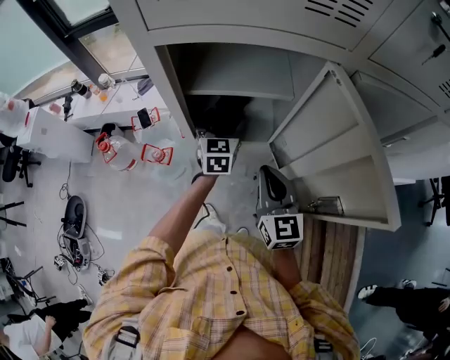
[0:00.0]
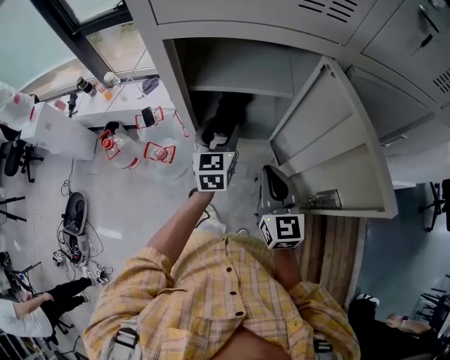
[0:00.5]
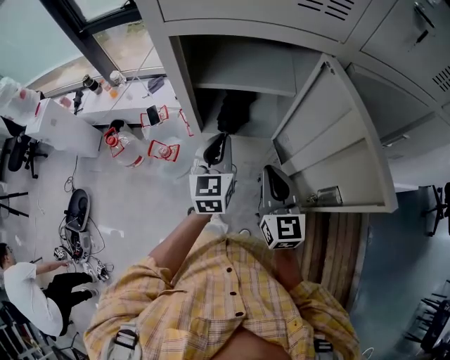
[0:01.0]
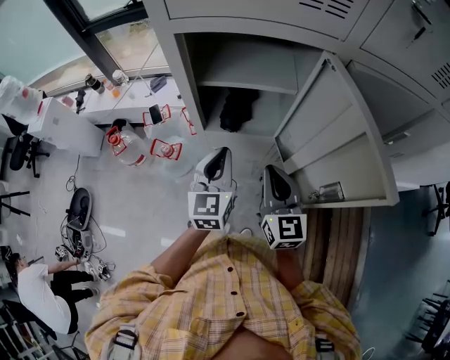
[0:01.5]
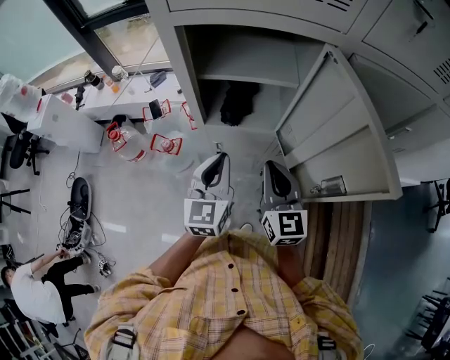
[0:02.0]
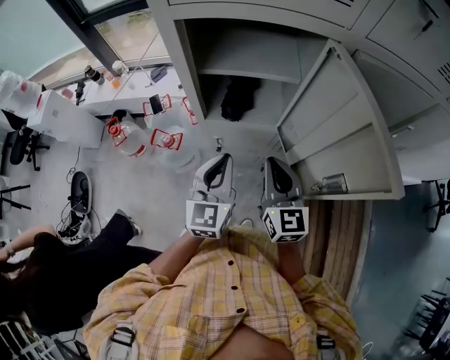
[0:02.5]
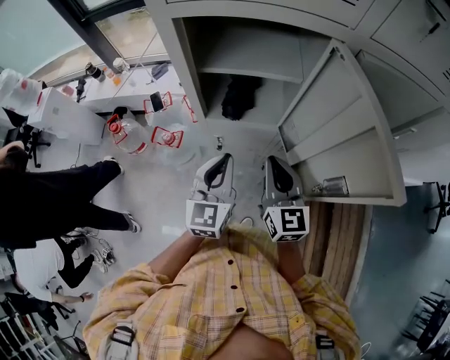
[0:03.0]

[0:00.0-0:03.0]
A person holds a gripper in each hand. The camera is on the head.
0:00.0 to 0:01.5: The left gripper shifts approximately 20 cm backward and upward, and closes.
0:01.5 to 0:03.0: The grippers move only a little.

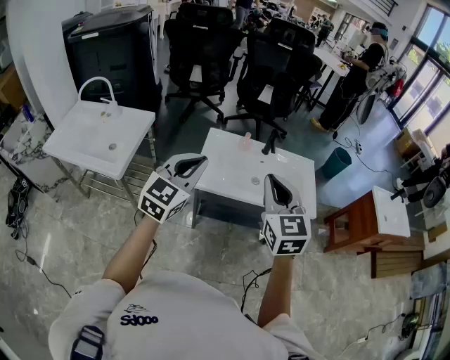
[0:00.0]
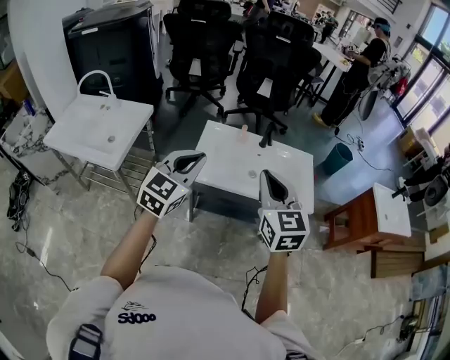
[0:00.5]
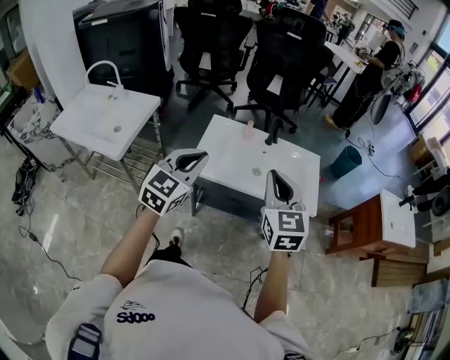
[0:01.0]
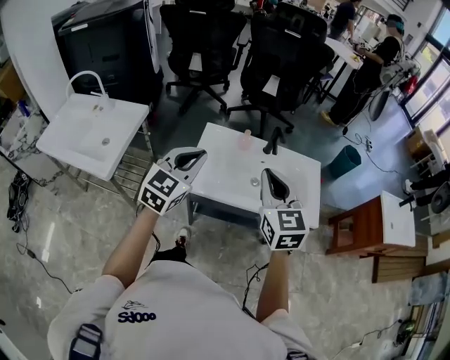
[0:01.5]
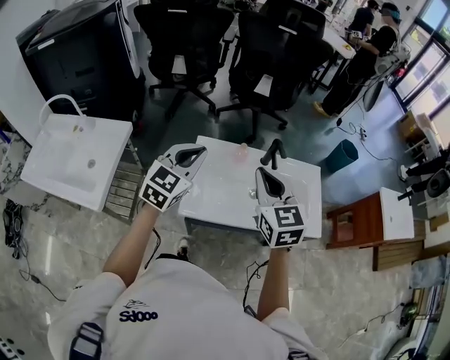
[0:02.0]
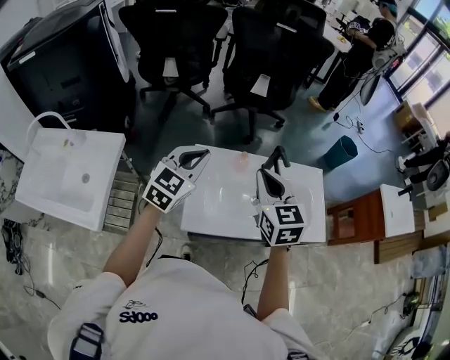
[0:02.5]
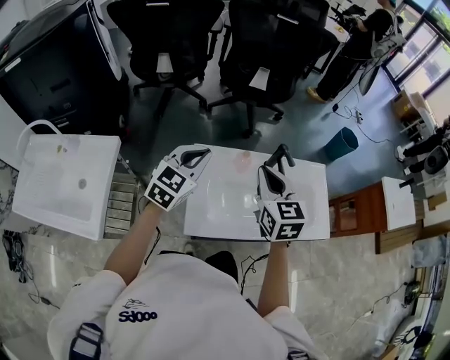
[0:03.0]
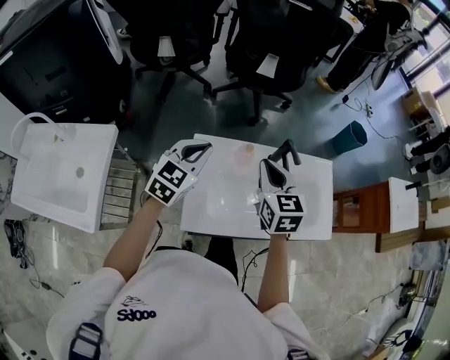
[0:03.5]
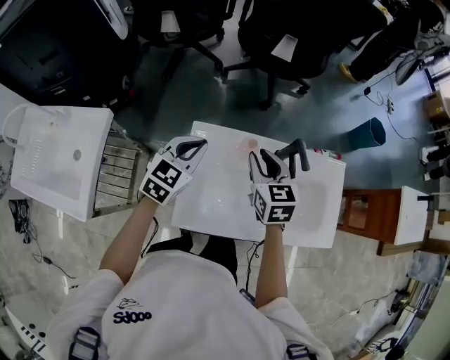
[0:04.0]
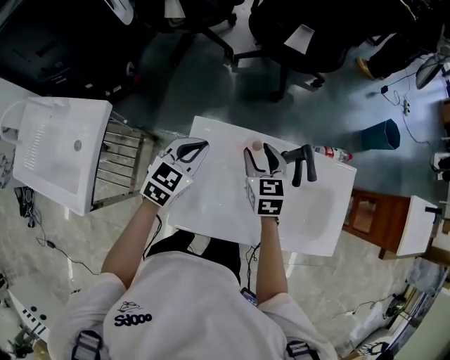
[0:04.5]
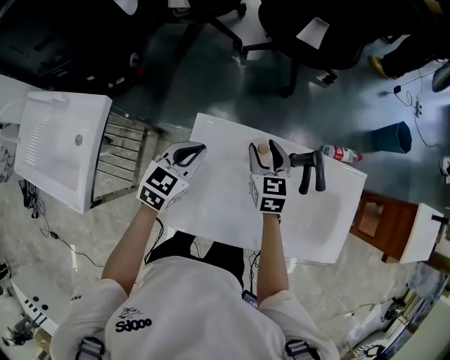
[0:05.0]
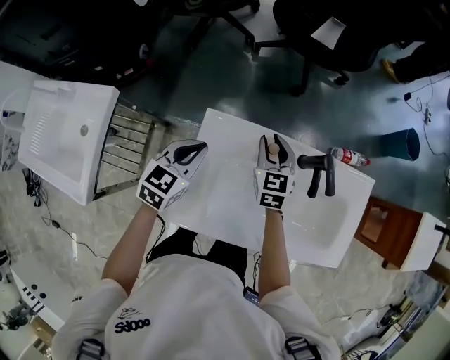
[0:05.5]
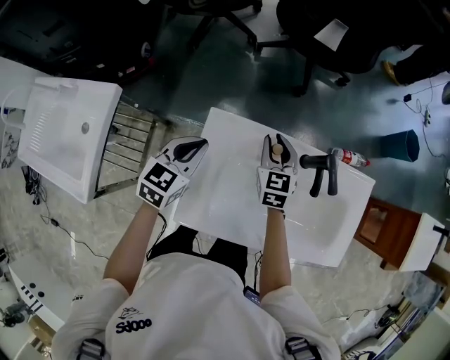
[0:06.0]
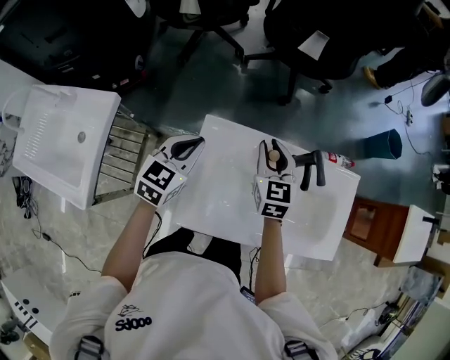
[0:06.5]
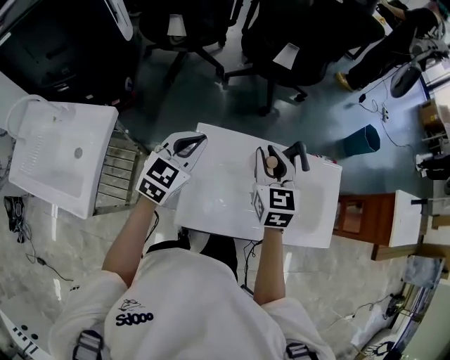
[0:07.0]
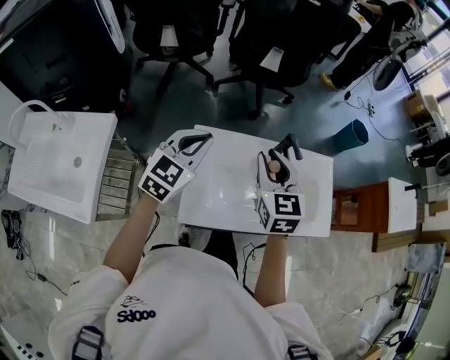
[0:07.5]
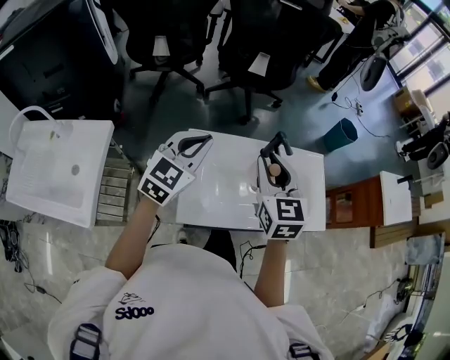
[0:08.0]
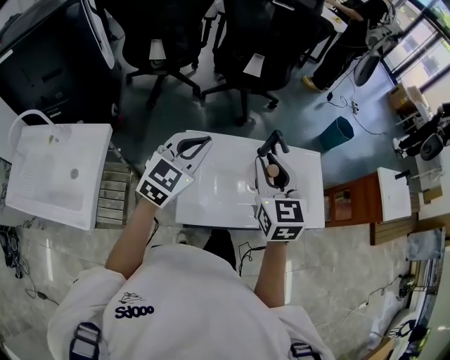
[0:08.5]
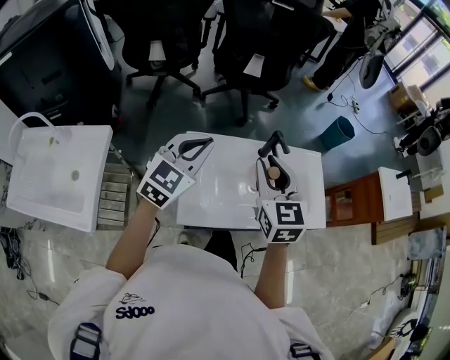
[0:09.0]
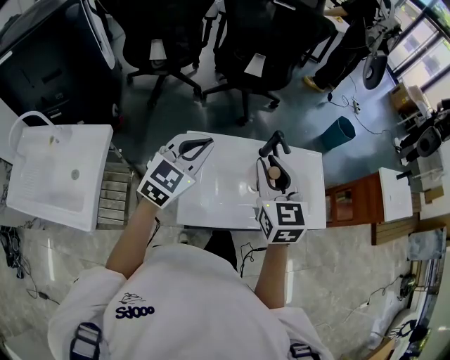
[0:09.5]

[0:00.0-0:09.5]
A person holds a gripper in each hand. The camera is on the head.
0:00.0 to 0:02.0: The grippers both shift forward by roughly 20 cm.
0:02.0 to 0:04.0: The right gripper travels forward and downward by approximately 25 cm, and opens its fingers, while the left gripper is displaced downward and forward by approximately 20 cm.
0:04.0 to 0:05.5: The left gripper shifts approximately 10 cm downward. Meanwhile the right gripper shifts some 15 cm downward and forward, and opens, then closes once more.
0:05.5 to 0:07.5: The right gripper goes some 25 cm upward and backward. The left gripper goes approximately 15 cm upward, and changes its angle by some 30 degrees.
0:07.5 to 0:09.5: The left gripper moves some 5 cm. The right gripper changes place by roughly 5 cm.

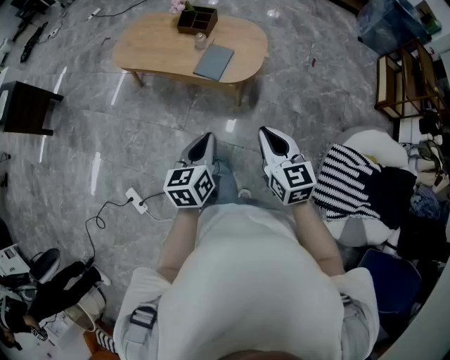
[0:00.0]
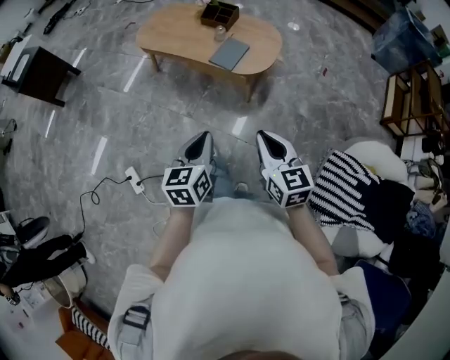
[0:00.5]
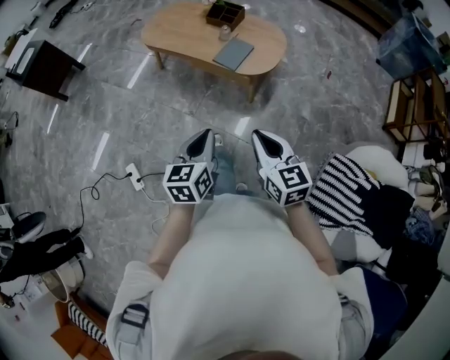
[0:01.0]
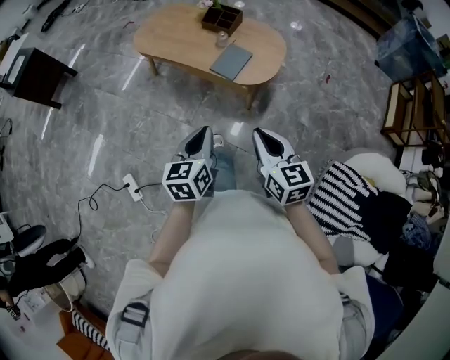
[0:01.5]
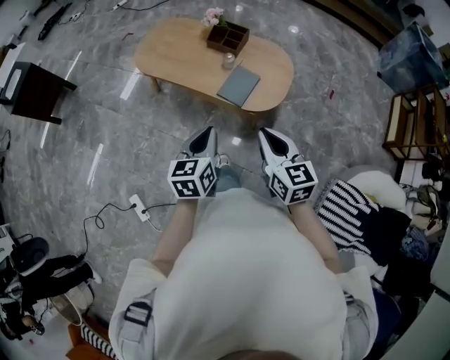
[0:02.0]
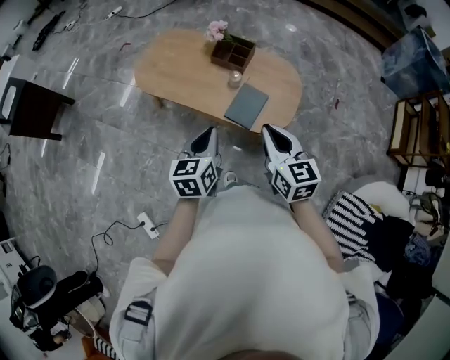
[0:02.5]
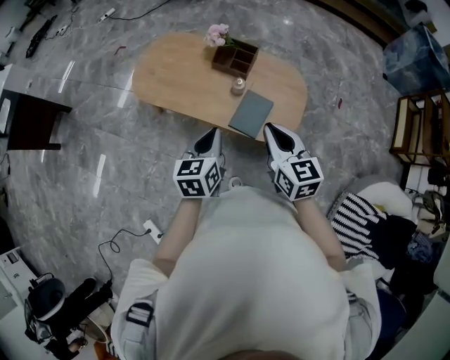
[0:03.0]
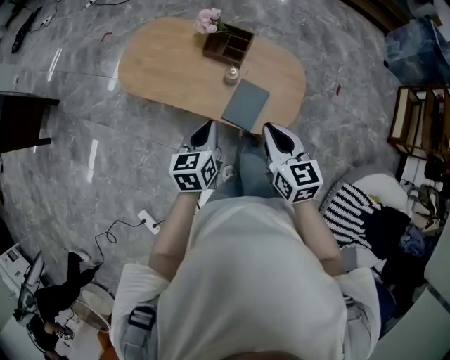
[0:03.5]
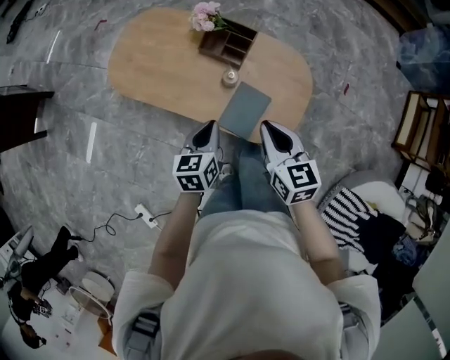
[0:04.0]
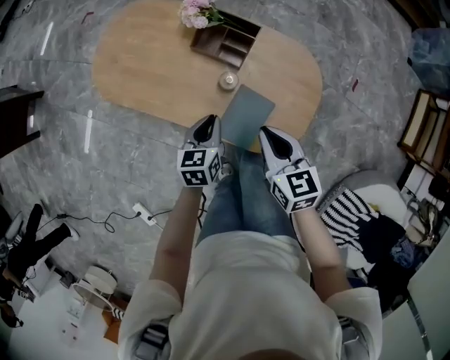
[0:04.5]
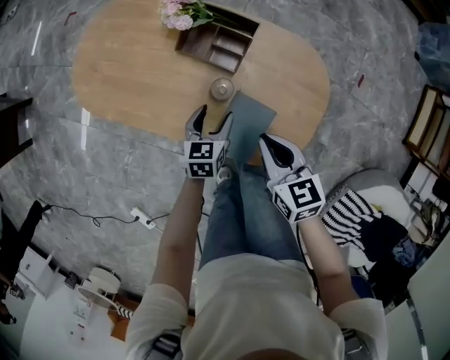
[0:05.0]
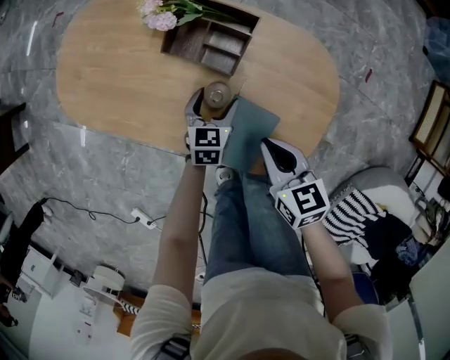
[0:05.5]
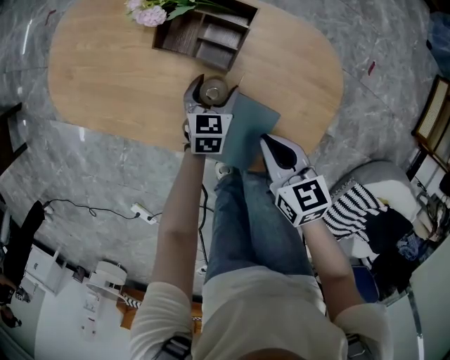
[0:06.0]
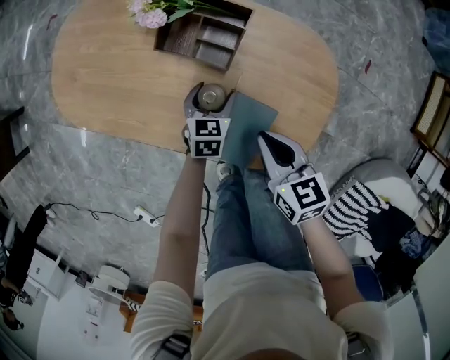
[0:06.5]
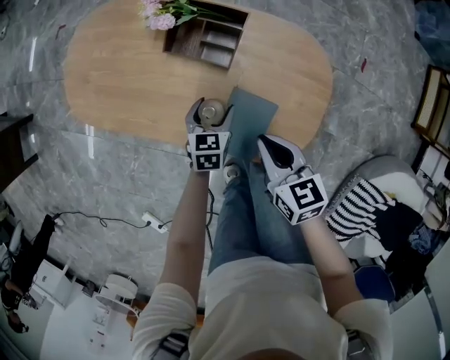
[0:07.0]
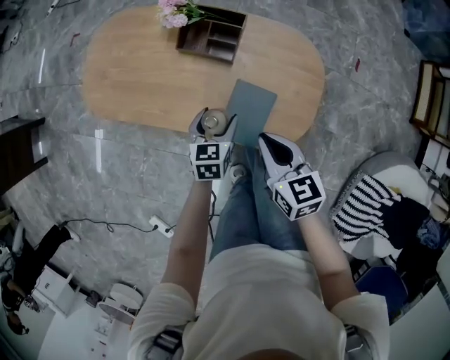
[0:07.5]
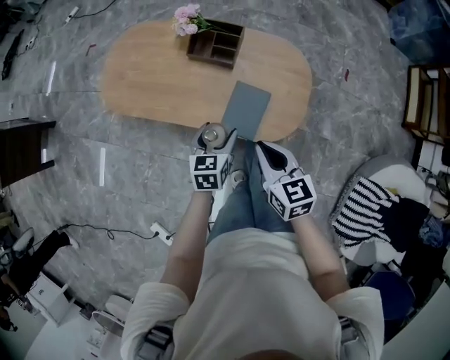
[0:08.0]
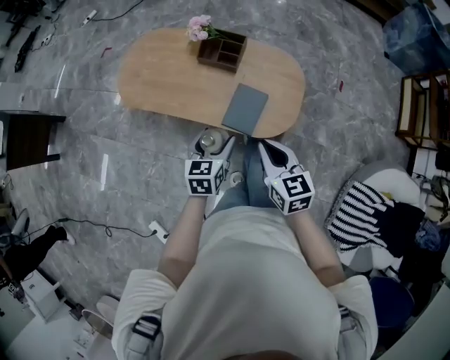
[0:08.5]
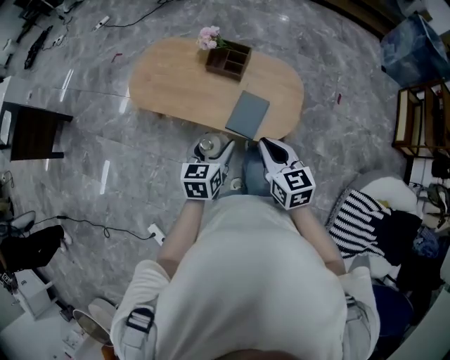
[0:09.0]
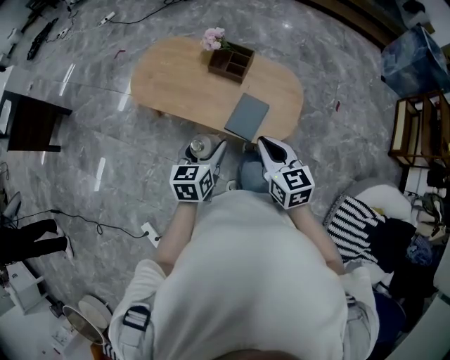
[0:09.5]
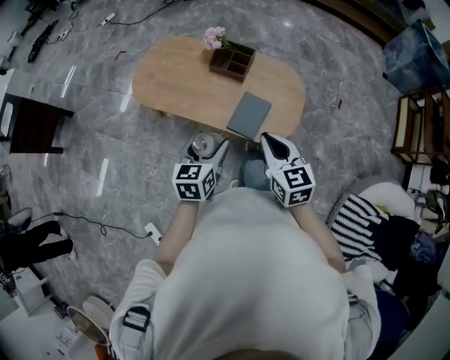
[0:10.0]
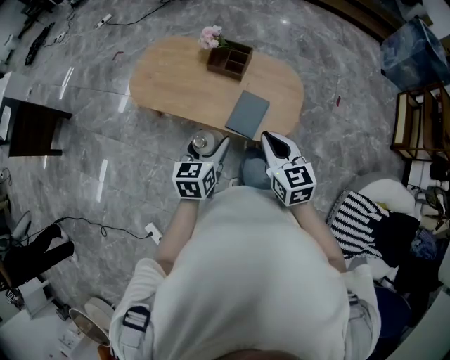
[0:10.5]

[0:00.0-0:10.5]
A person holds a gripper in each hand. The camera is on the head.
0:00.0 to 0:02.0: The right gripper goes about 15 cm forward and to the left. Meanwhile the left gripper heads forward, covering approximately 15 cm.
0:02.0 to 0:04.0: The left gripper goes some 35 cm forward and downward. Meanwhile the right gripper goes approximately 30 cm forward.
0:04.0 to 0:06.5: The right gripper is displaced downward by roughly 20 cm; the left gripper heads downward and forward, covering approximately 35 cm, changes its angle by some 20 degrees, and opens.
0:06.5 to 0:08.5: Both grippers move upward and backward, some 35 cm.
0:08.5 to 0:10.5: The grippers both shift upward by roughly 5 cm.

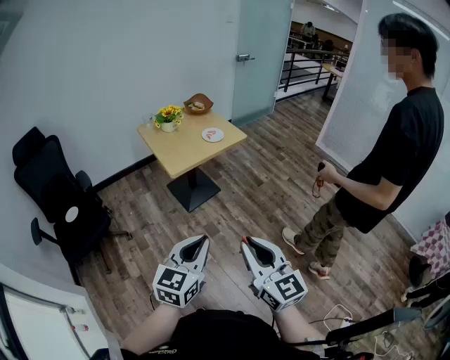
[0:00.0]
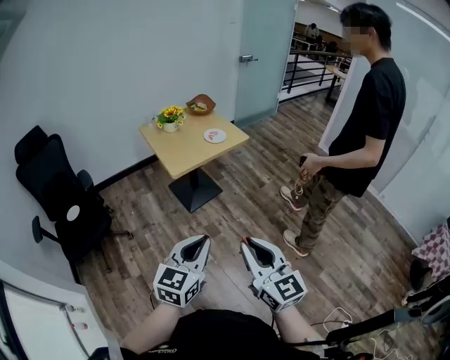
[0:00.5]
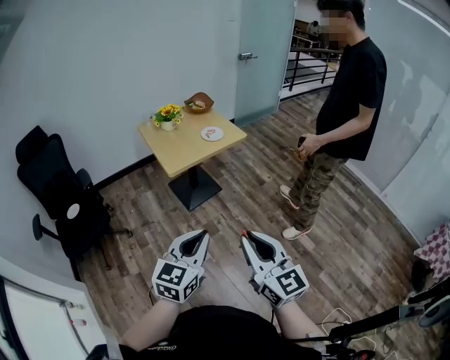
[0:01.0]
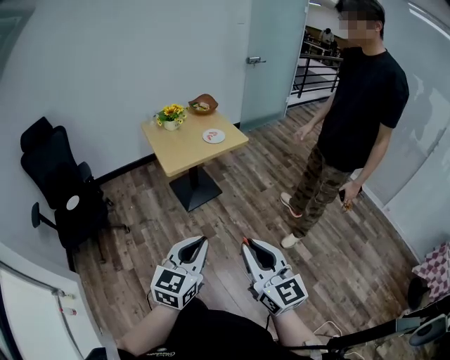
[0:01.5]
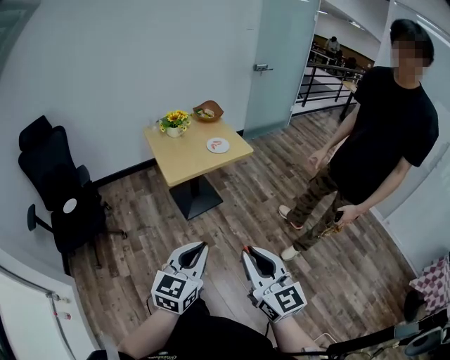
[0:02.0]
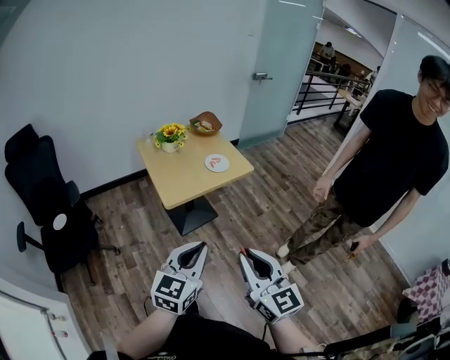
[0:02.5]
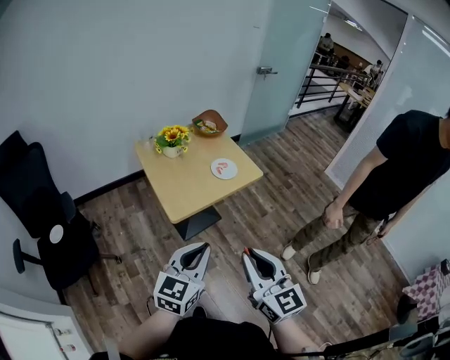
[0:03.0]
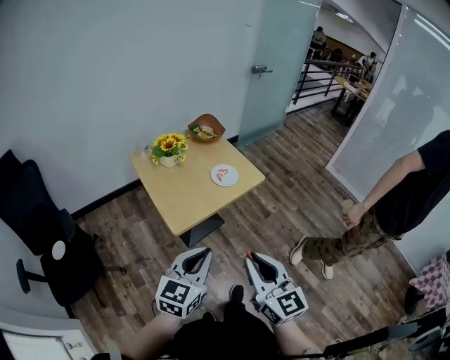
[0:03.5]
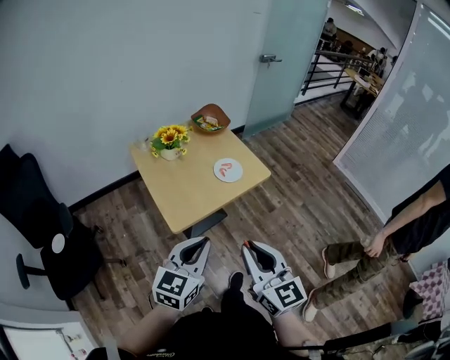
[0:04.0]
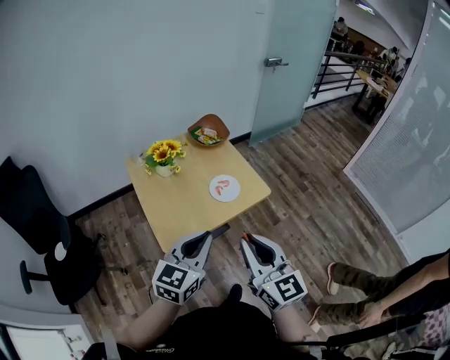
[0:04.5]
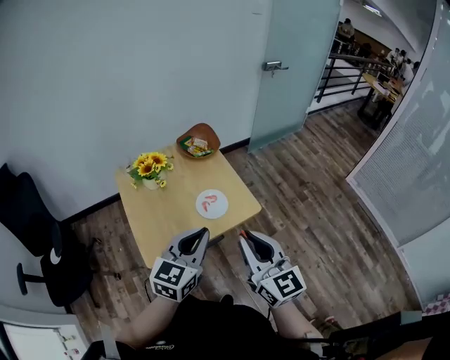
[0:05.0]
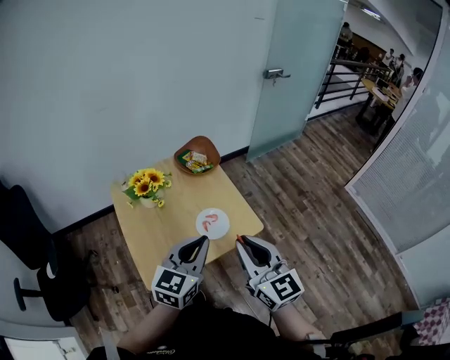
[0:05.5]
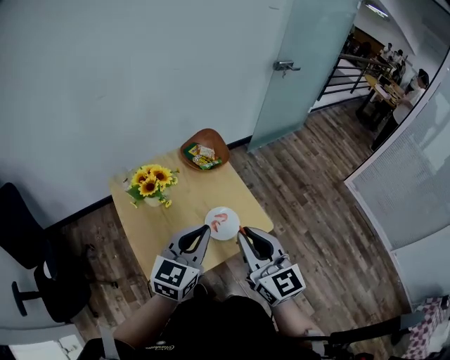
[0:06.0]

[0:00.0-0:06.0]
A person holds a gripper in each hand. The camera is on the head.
0:00.0 to 0:02.0: The grippers both shift to the right and forward by some 10 cm.
0:02.0 to 0:04.0: The grippers both shift forward by about 35 cm.
0:04.0 to 0:06.0: Both grippers move forward, roughly 35 cm.
